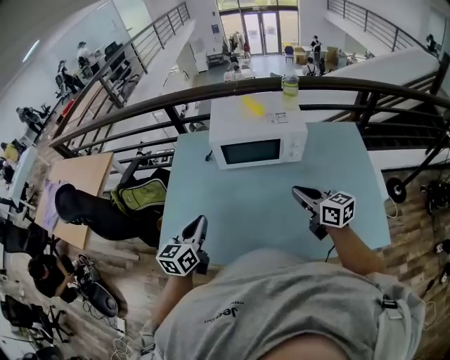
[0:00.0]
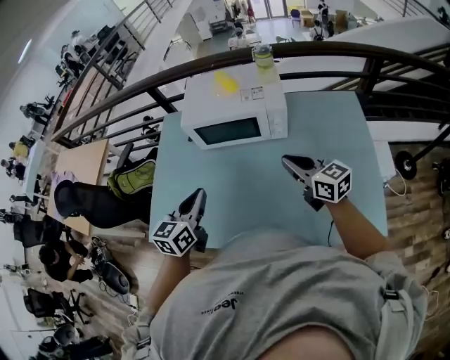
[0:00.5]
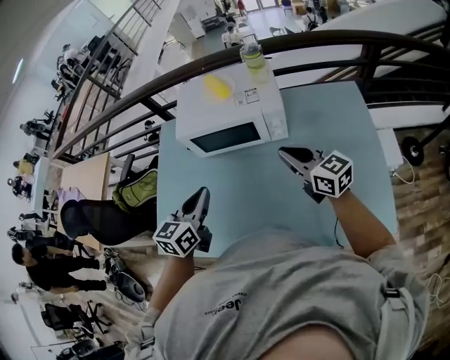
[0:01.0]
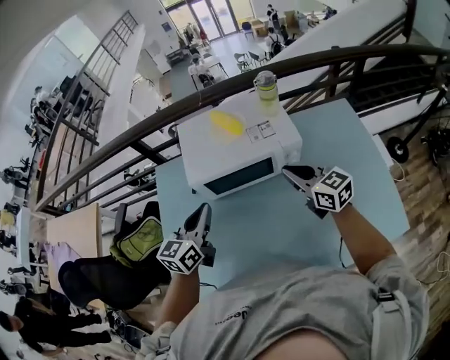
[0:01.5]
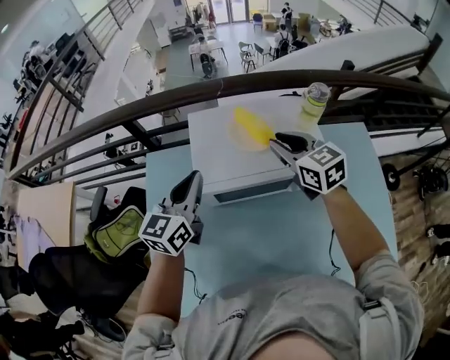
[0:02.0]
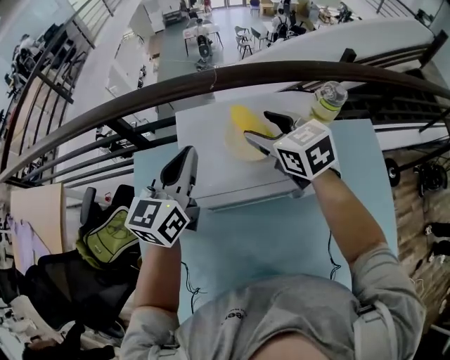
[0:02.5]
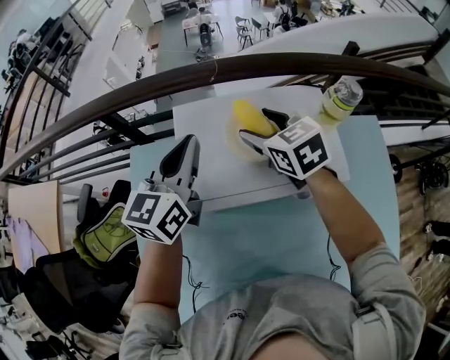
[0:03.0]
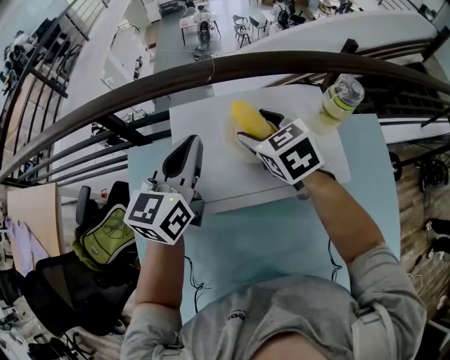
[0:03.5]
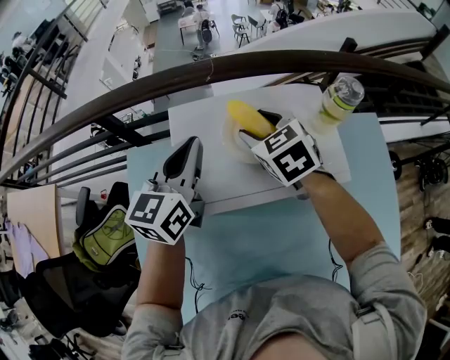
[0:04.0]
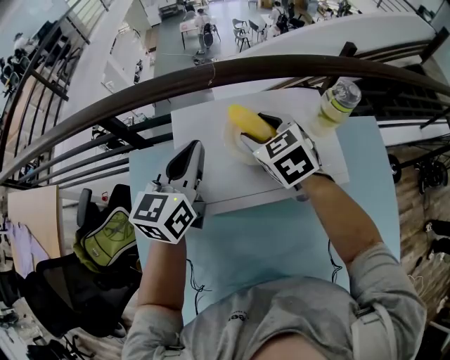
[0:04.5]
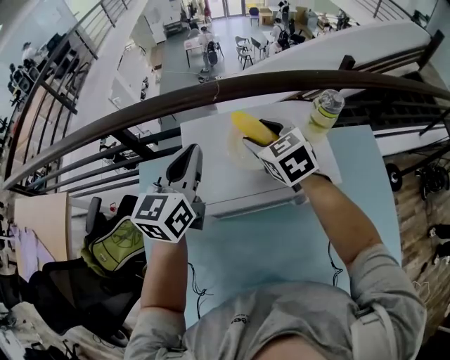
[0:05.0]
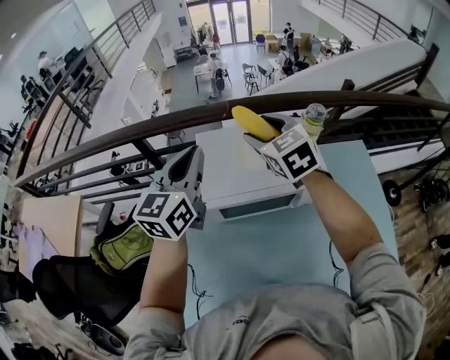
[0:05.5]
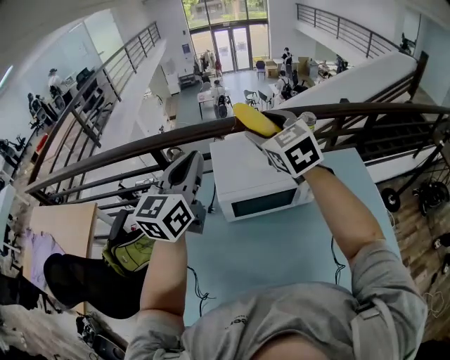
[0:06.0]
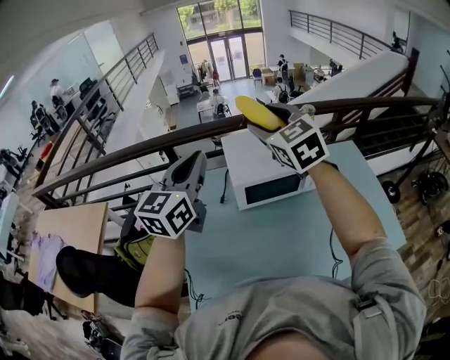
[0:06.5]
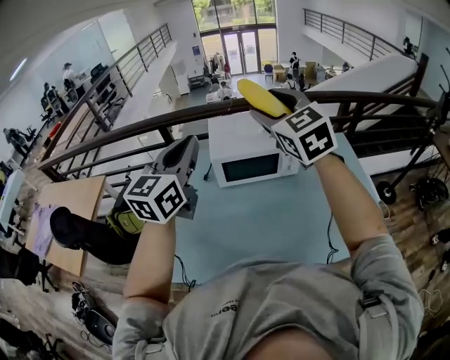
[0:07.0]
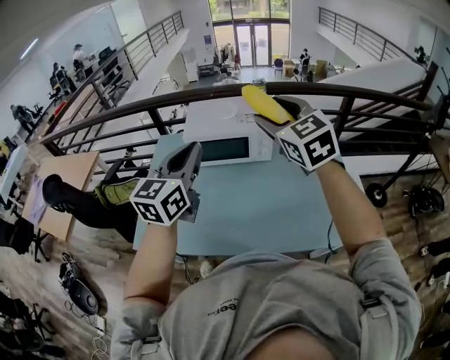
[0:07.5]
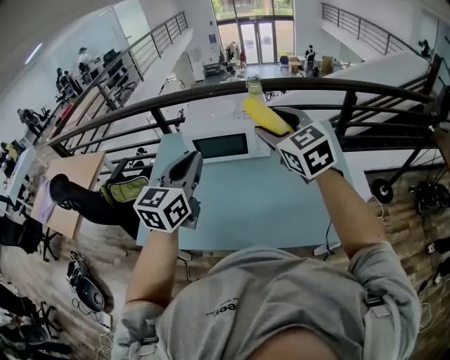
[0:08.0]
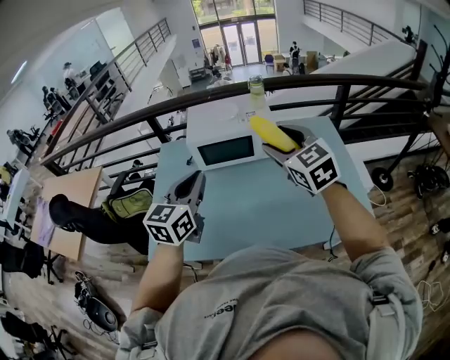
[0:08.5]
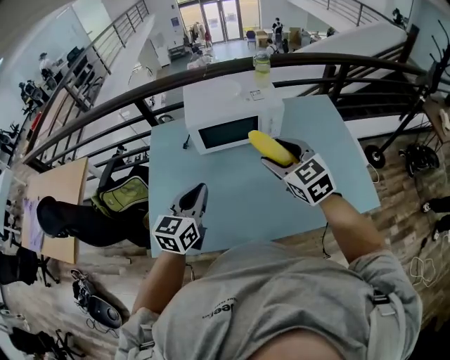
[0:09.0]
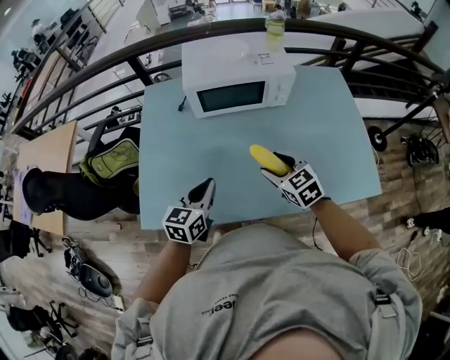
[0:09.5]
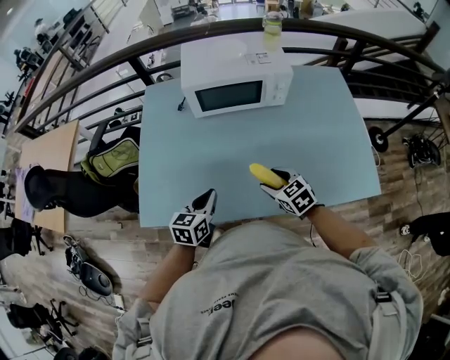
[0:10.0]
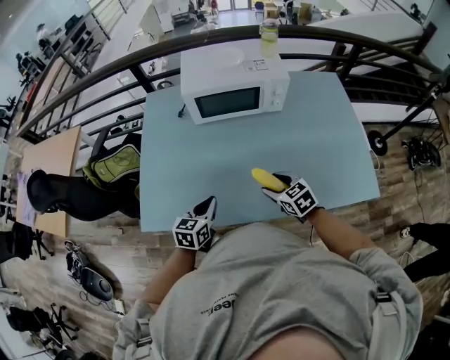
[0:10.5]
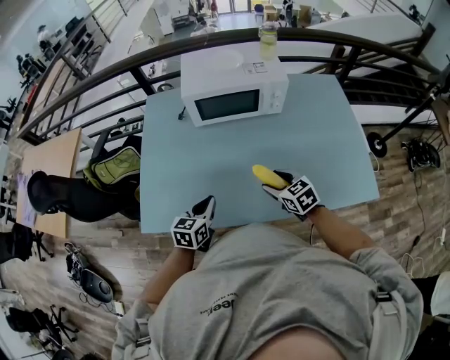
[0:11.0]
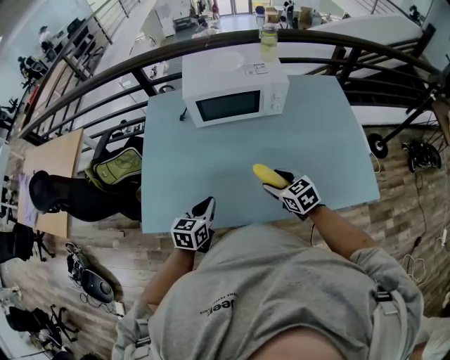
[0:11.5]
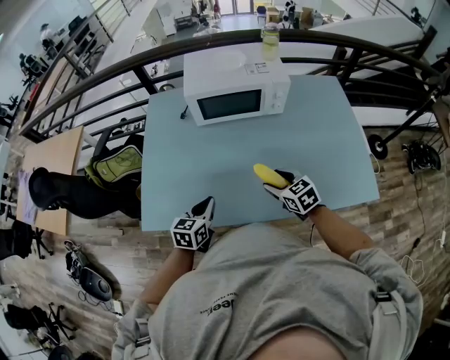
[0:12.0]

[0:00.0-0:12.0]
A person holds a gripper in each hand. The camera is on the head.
0:00.0 to 0:02.0: Both grippers move forward, approximately 35 cm. The right gripper rotates some 20 degrees.
0:02.0 to 0:04.0: The right gripper goes approximately 15 cm forward, downward and to the left, turns by approximately 20 degrees, and opens up. Meanwhile the left gripper shifts roughly 10 cm forward.
0:04.0 to 0:06.0: The two grippers go roughly 30 cm upward and backward. The right gripper turns by roughly 20 degrees.
0:06.0 to 0:08.0: Both grippers travel together backward and to the right, approximately 40 cm.
0:08.0 to 0:10.0: The two grippers go about 35 cm downward. The right gripper points its fingers roughly 30 degrees further downward, while the left gripper changes its angle by roughly 30 degrees.
0:10.0 to 0:12.0: There are only small adjustments of the grippers.

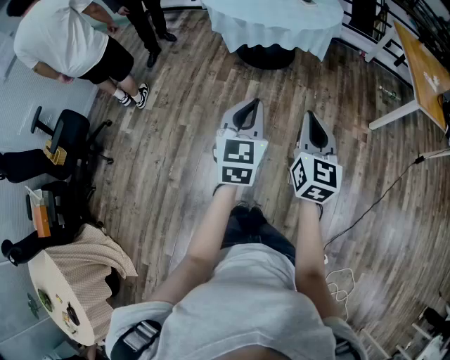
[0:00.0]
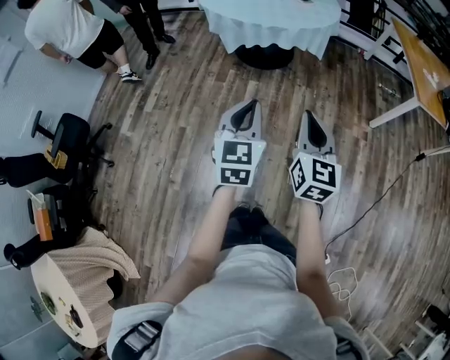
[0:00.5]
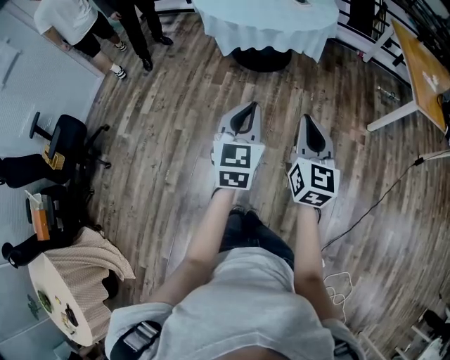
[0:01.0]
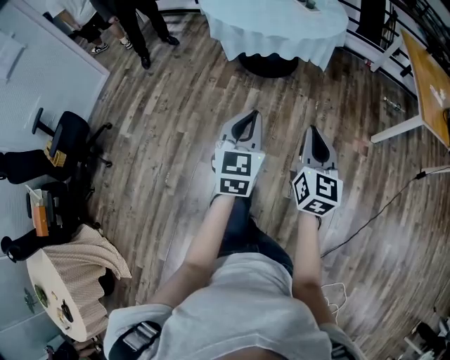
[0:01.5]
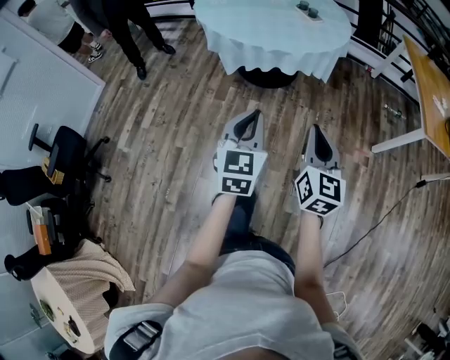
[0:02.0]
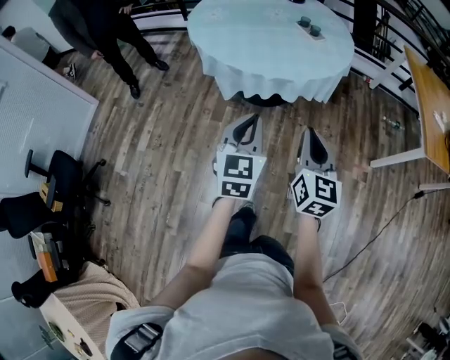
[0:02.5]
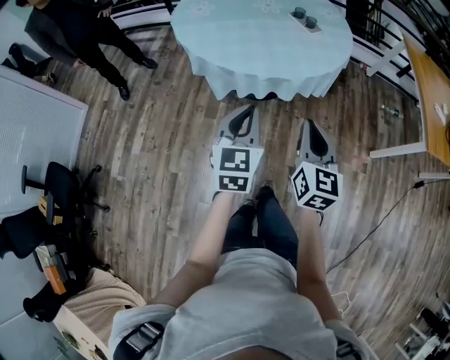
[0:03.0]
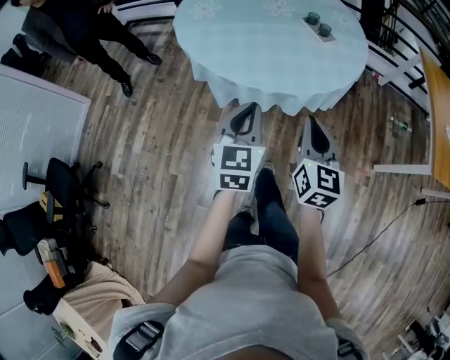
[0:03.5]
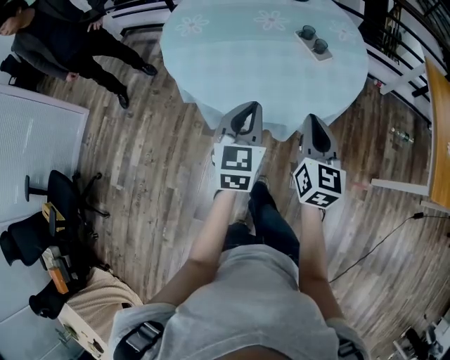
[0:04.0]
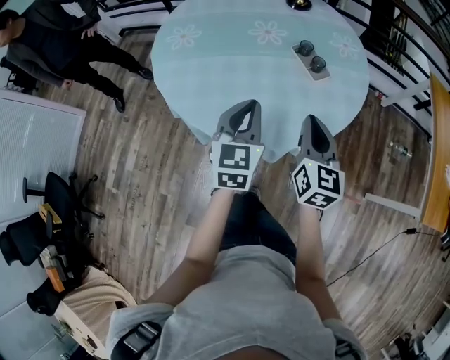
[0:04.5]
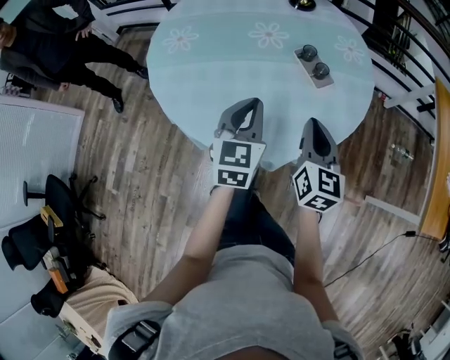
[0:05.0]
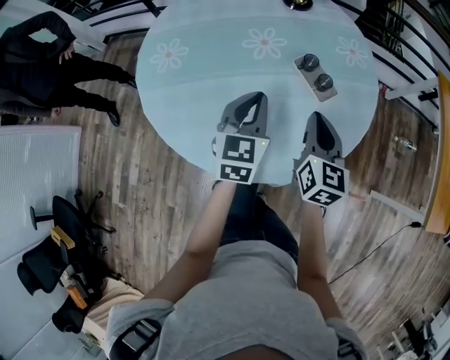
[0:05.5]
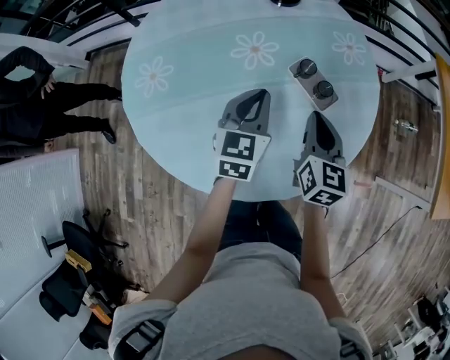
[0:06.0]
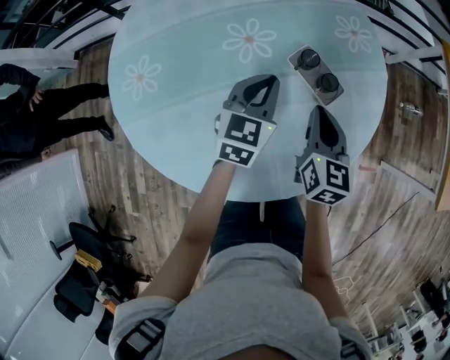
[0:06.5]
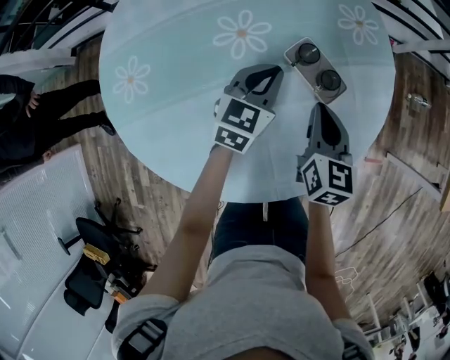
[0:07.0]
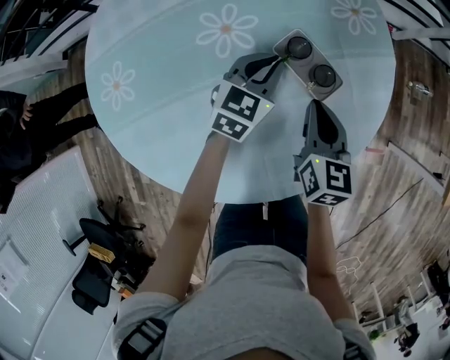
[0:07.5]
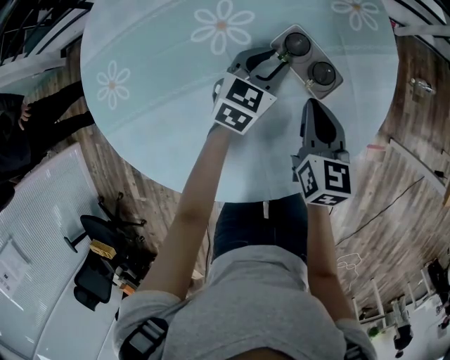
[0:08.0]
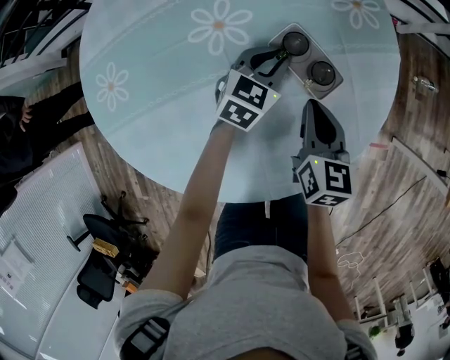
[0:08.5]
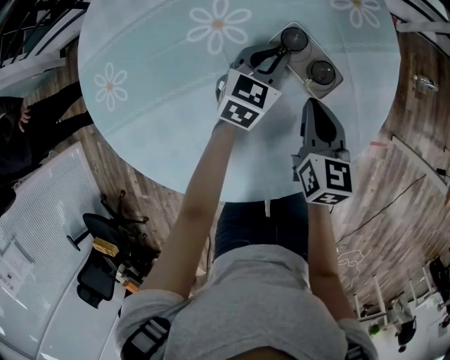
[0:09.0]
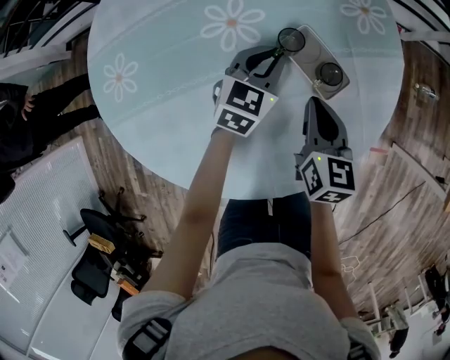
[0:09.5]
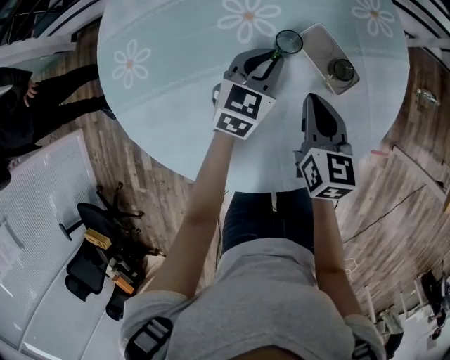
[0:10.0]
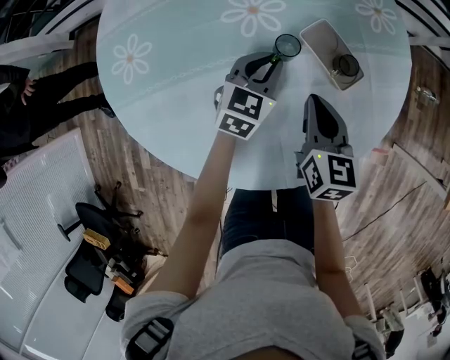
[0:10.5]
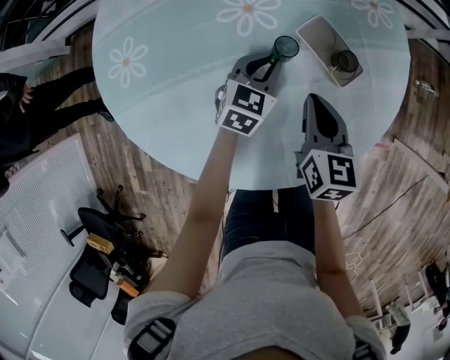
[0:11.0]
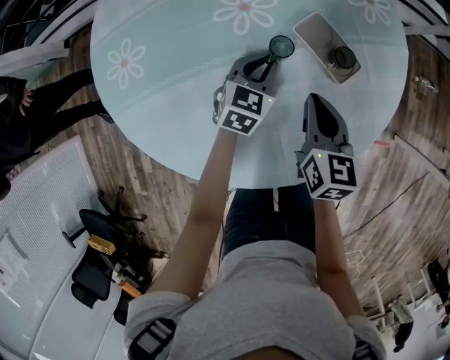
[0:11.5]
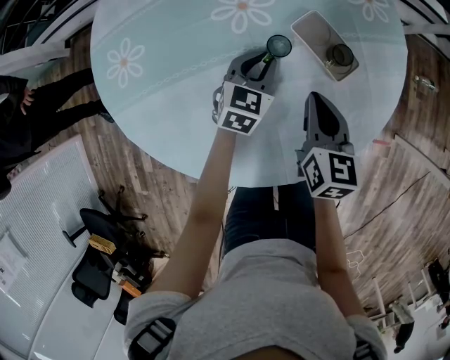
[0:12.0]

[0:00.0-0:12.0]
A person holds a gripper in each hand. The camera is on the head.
0:00.0 to 0:02.0: Both grippers move forward, approximately 15 cm.
0:02.0 to 0:04.0: The pair of grippers is taken forward, some 50 cm.
0:04.0 to 0:06.0: Both grippers move forward, about 30 cm.
0:06.0 to 0:08.0: The left gripper travels downward, forward and to the right by some 20 cm, turns by some 30 degrees, and opens. Meanwhile the right gripper shifts approximately 10 cm downward and forward.
0:08.0 to 0:10.0: The right gripper changes place by about 5 cm; the left gripper travels to the left by roughly 5 cm, and closes its fingers.
0:10.0 to 0:12.0: The left gripper moves downward, about 5 cm.

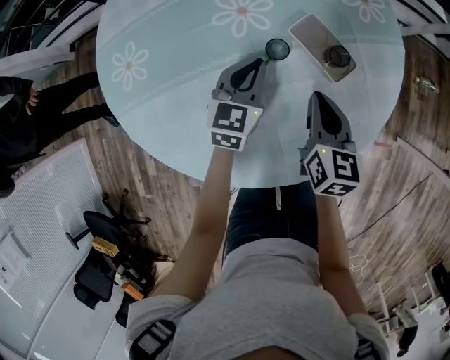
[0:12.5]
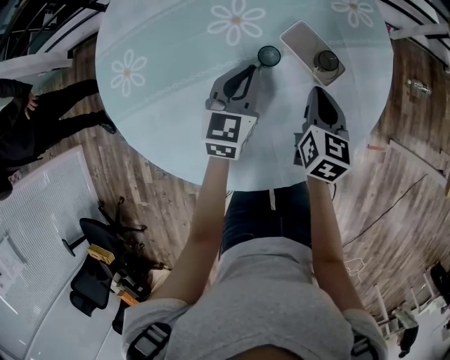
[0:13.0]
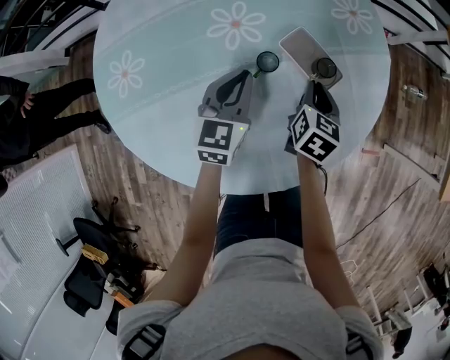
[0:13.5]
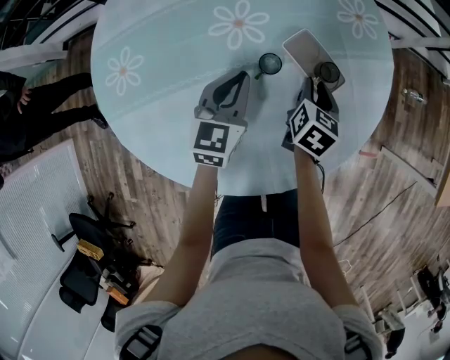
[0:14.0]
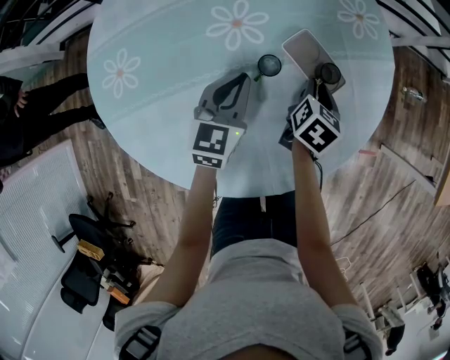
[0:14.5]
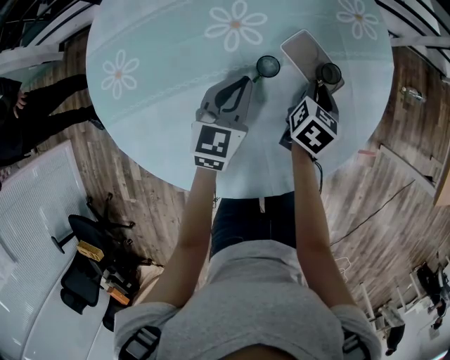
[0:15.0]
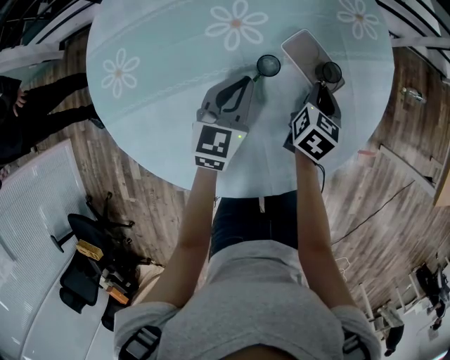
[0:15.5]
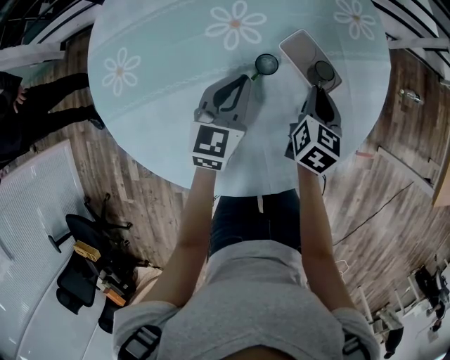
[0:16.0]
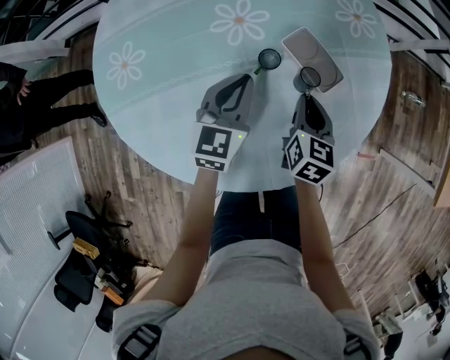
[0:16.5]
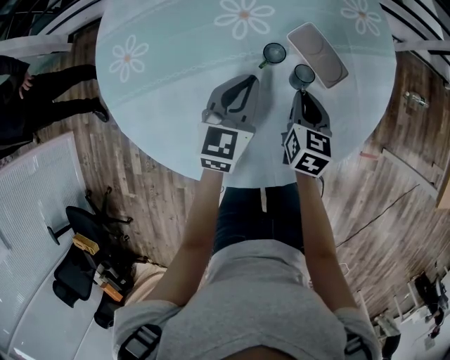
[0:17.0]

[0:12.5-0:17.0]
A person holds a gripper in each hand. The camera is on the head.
0:12.5 to 0:14.5: The right gripper is displaced forward and downward by approximately 10 cm, and turns by about 30 degrees.
0:14.5 to 0:17.0: The right gripper heads backward, covering about 10 cm, and swivels roughly 20 degrees.
